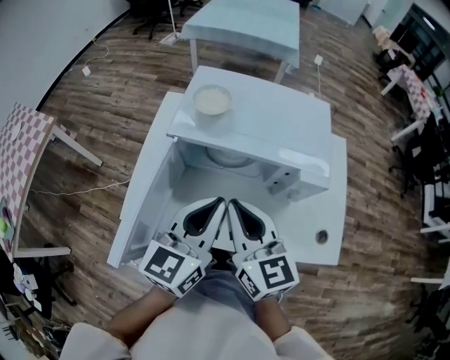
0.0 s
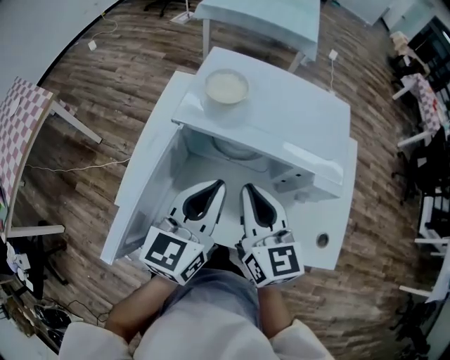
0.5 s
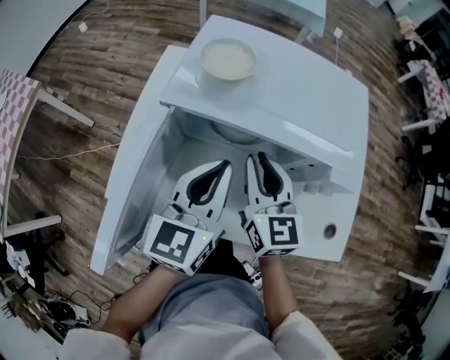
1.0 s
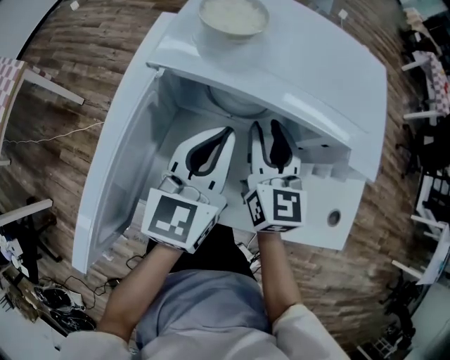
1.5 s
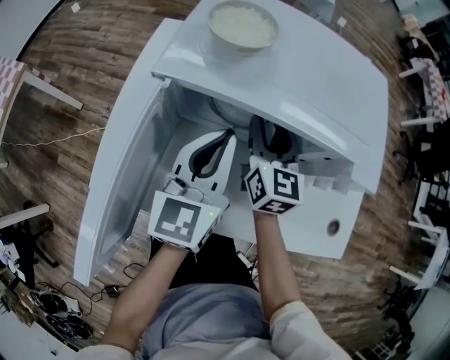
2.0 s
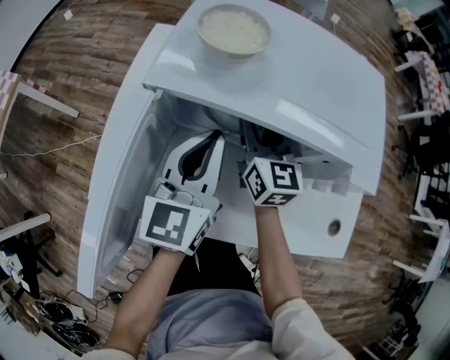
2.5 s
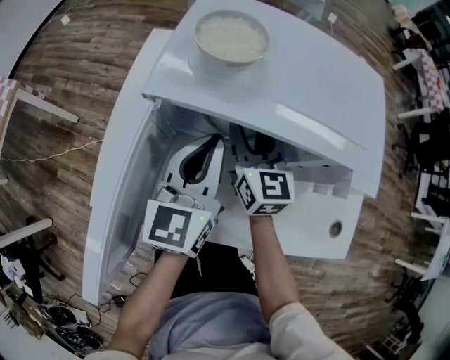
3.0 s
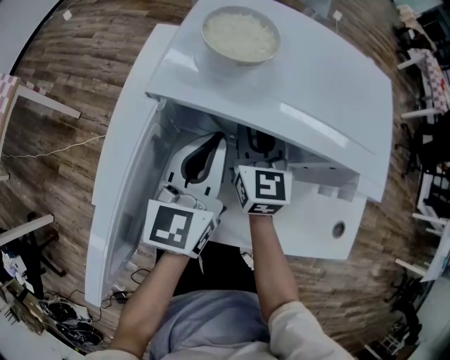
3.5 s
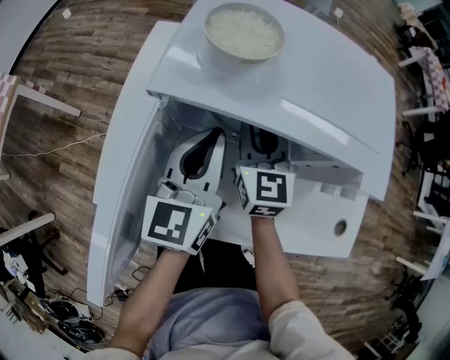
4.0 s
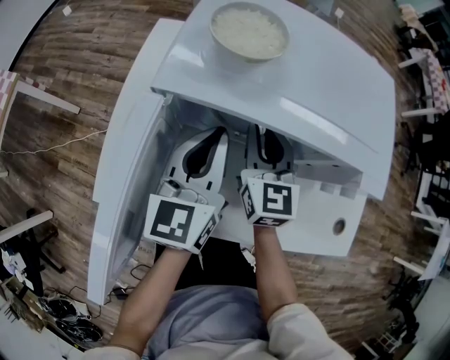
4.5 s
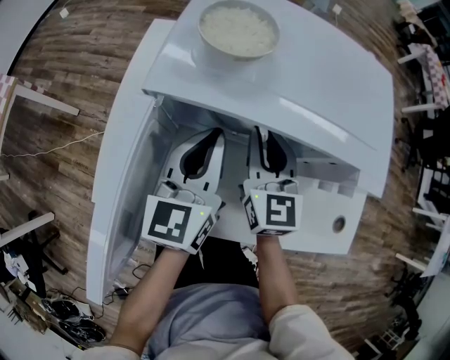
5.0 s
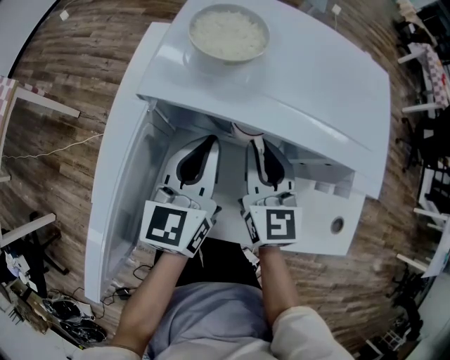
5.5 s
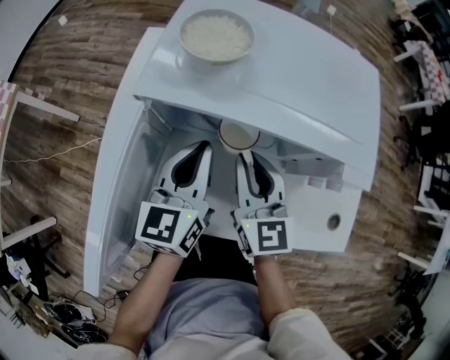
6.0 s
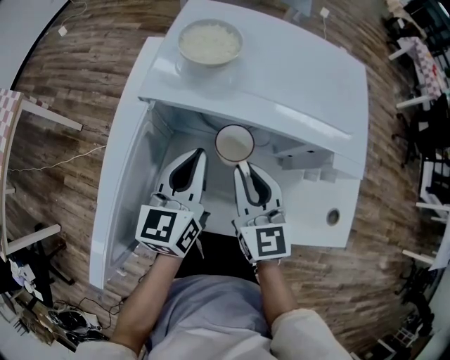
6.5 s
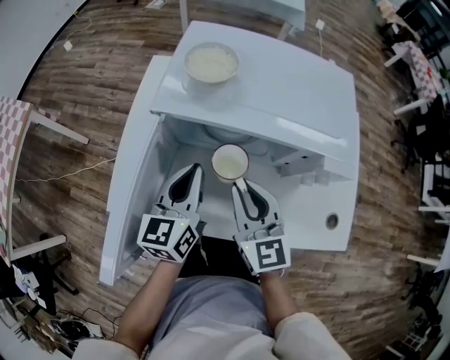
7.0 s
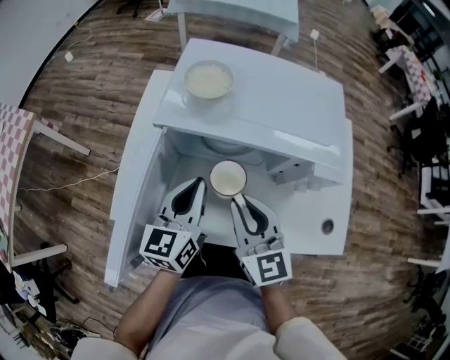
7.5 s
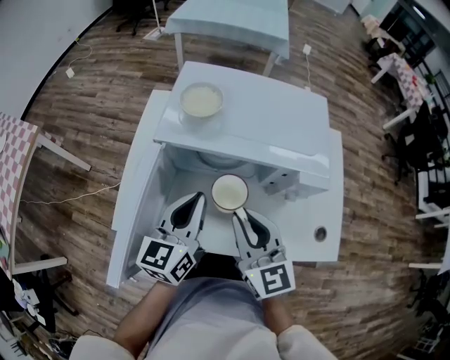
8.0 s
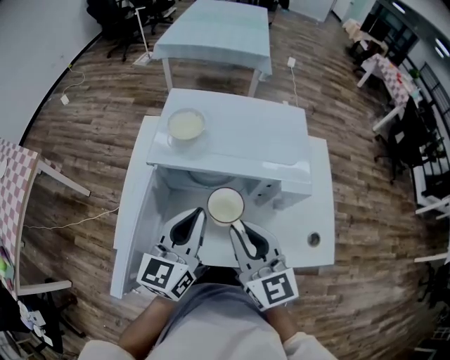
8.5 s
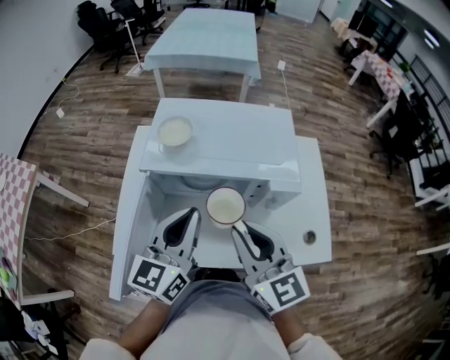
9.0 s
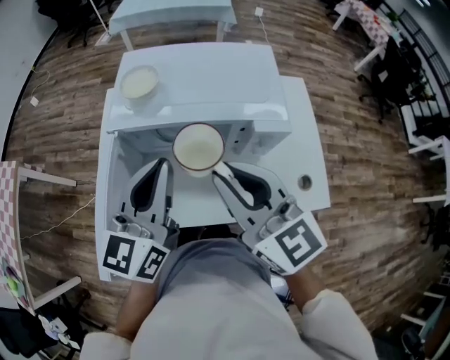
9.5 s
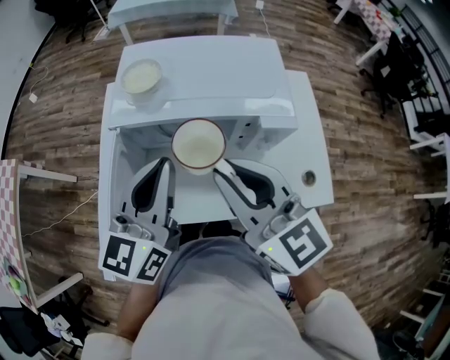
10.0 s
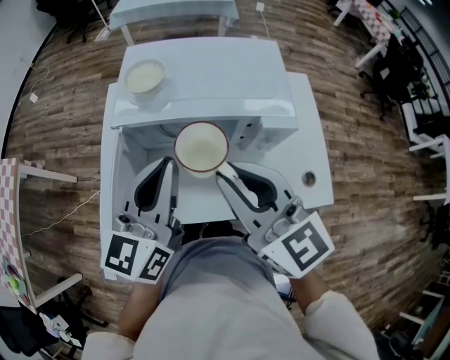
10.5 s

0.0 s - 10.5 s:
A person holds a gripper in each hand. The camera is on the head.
0.0 s - 2.0 s: The right gripper travels forward and downward by roughly 25 cm, and opens up, while the left gripper shifts some 15 cm downward and forward.
2.0 s - 4.0 s: The right gripper closes up.
4.0 s - 6.5 s: The right gripper is displaced backward by some 10 cm.
6.5 s - 8.5 s: The two grippers go about 15 cm upward and backward.
8.5 s - 10.5 s: The grippers both shift upward by some 5 cm.

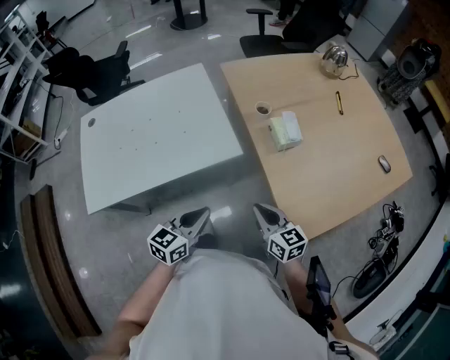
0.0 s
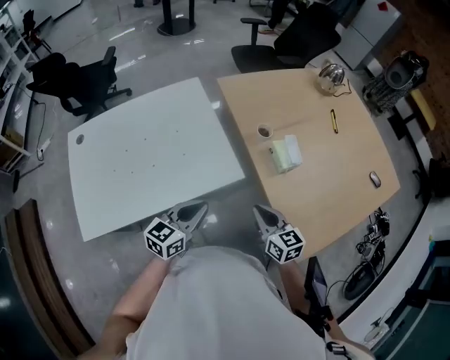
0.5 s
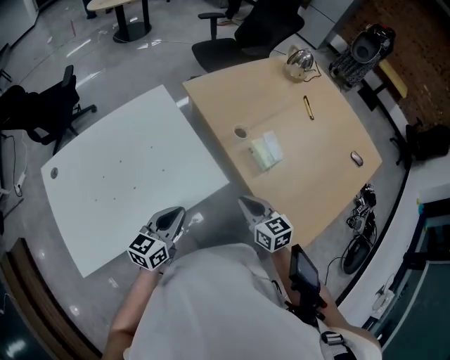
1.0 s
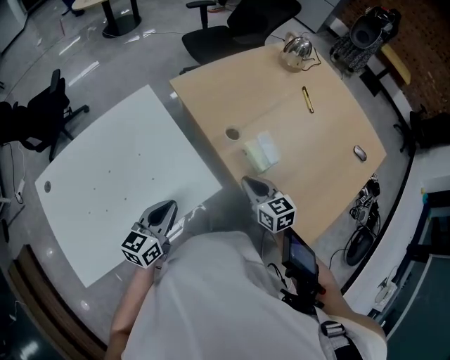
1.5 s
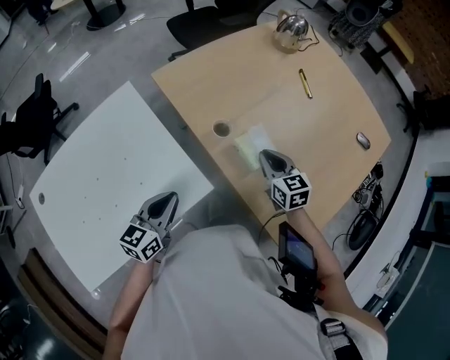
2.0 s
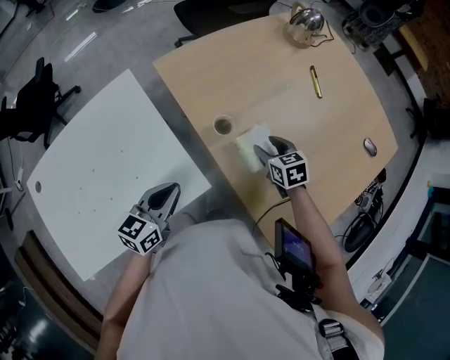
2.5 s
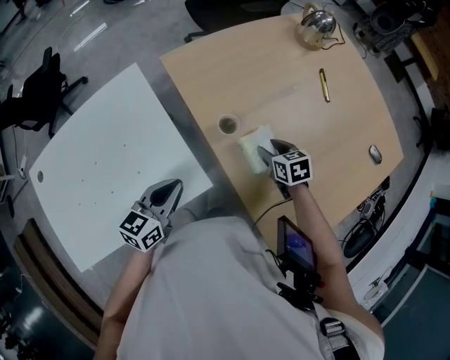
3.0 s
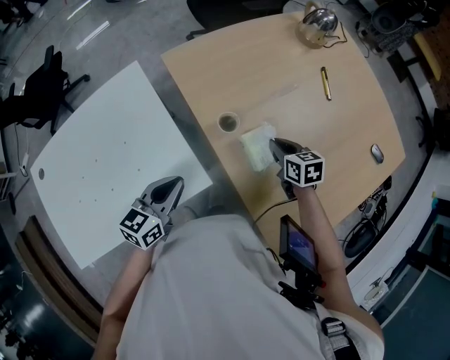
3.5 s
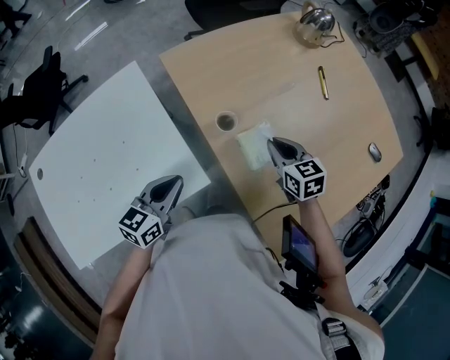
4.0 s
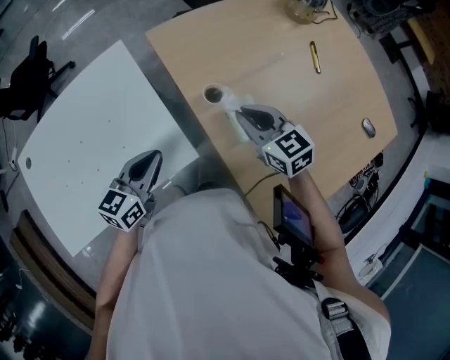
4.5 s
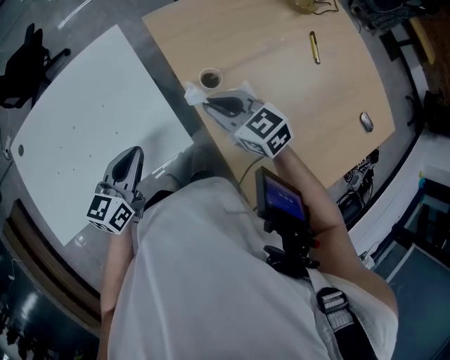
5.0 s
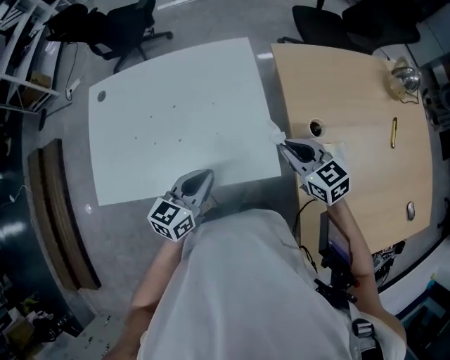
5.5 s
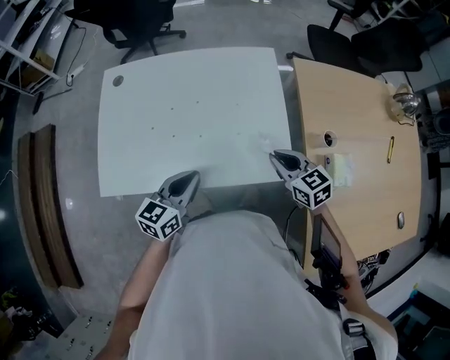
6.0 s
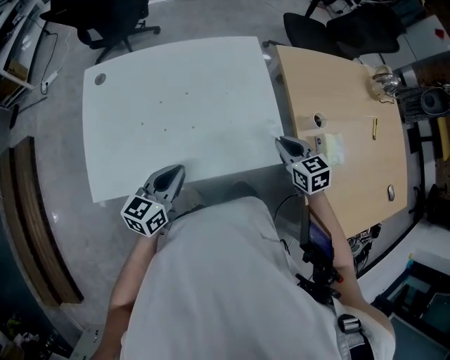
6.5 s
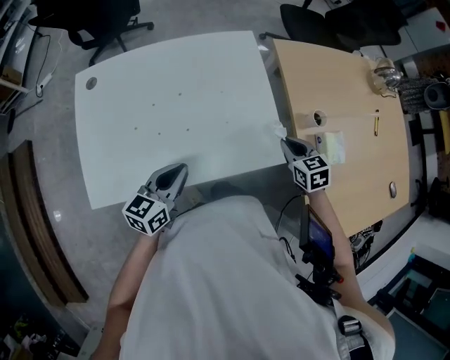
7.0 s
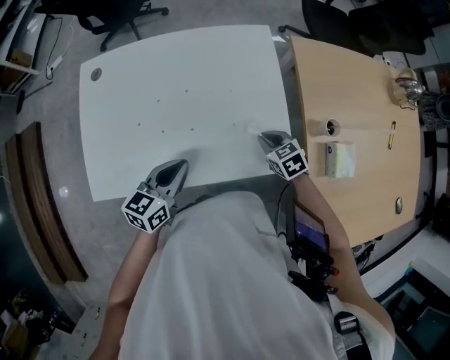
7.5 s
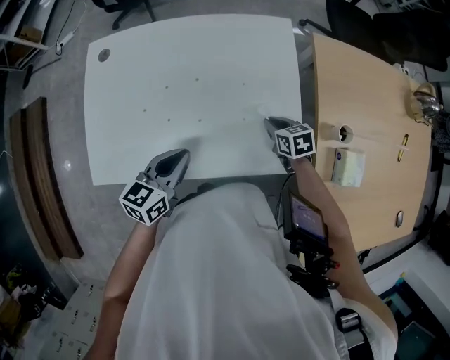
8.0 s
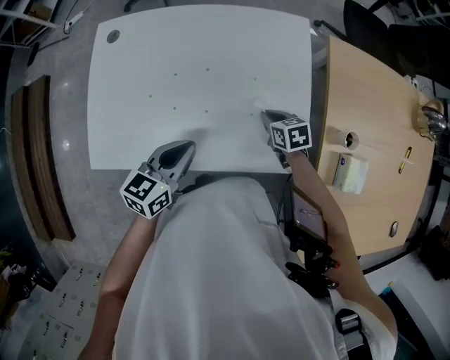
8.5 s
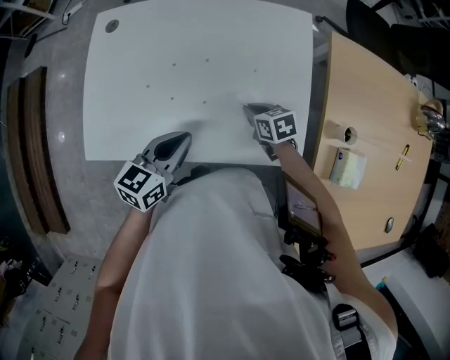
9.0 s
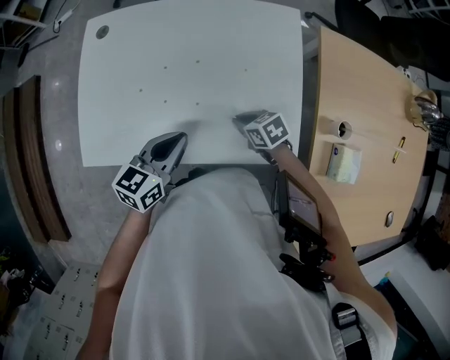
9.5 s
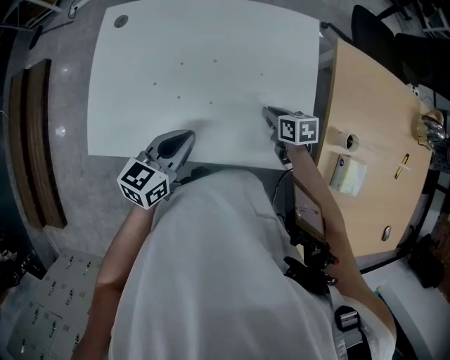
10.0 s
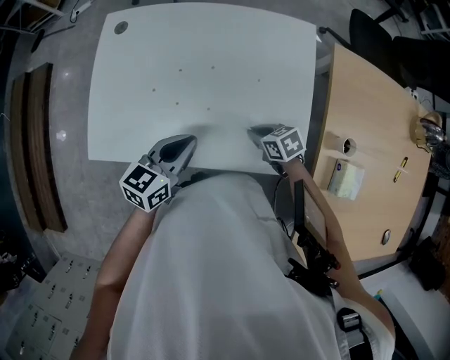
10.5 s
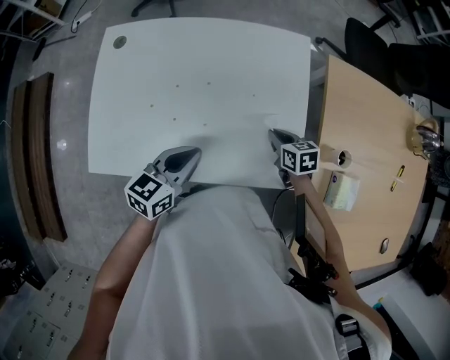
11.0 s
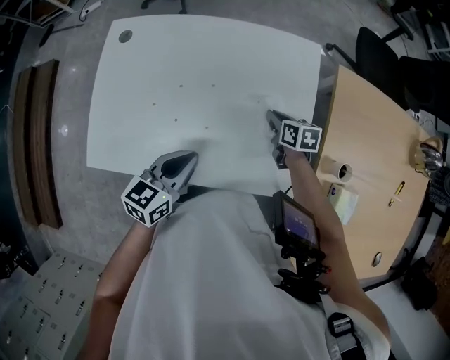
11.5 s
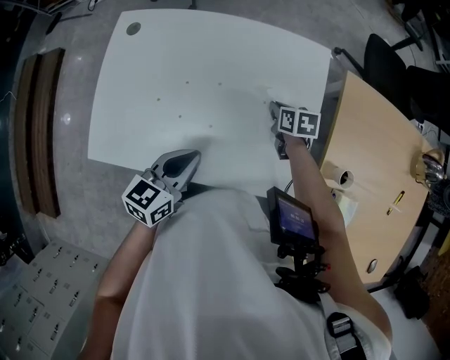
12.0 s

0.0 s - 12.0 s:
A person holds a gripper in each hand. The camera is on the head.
0.0 s - 2.0 s: The grippers both shift forward by roughly 25 cm. The right gripper changes its angle by approximately 30 degrees.
2.0 s - 4.0 s: The right gripper goes downward and returns, some 10 cm each way, and opens and closes again.
4.0 s - 6.0 s: The right gripper shifts by some 35 cm, and changes its angle by some 40 degrees; the left gripper ends up about 30 cm from where it was, and swivels some 30 degrees.
6.0 s - 8.0 s: The left gripper changes place by approximately 5 cm; the right gripper travels downward and forward by approximately 20 cm, and swivels about 30 degrees.
10.0 s - 12.0 s: The right gripper shifts approximately 10 cm forward.

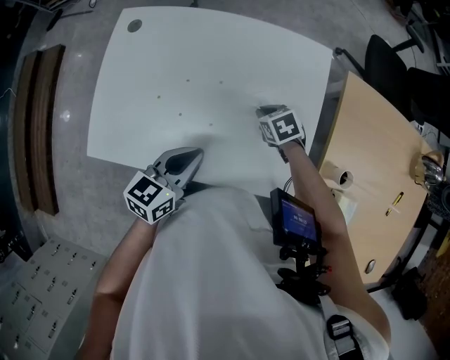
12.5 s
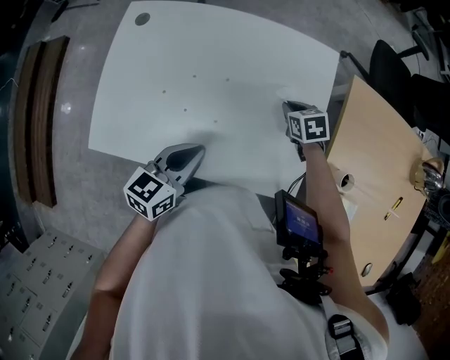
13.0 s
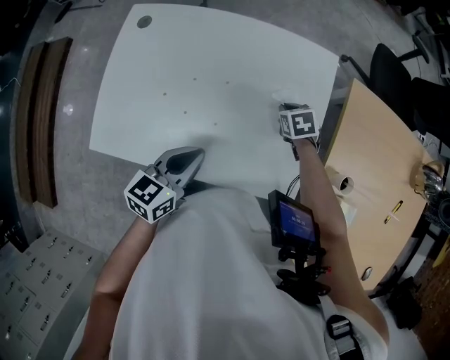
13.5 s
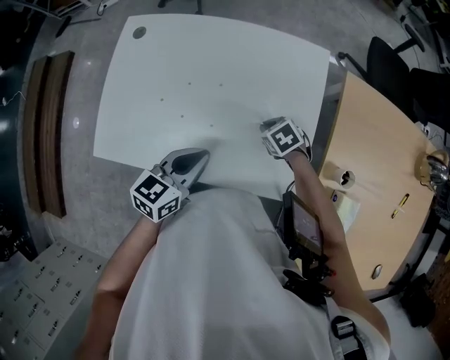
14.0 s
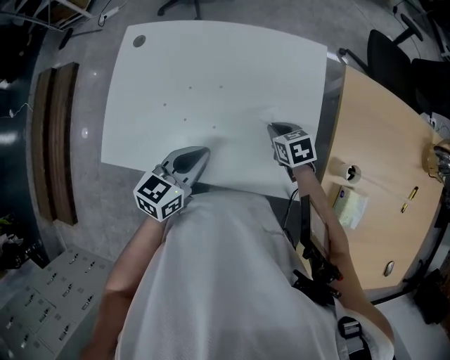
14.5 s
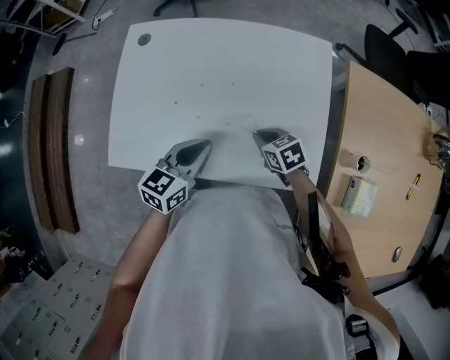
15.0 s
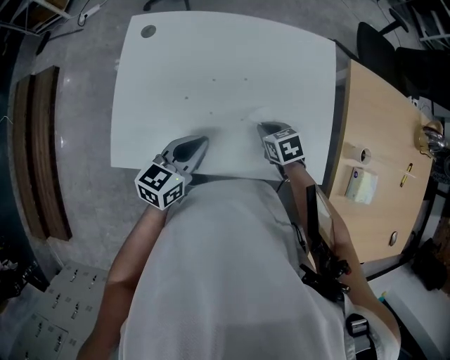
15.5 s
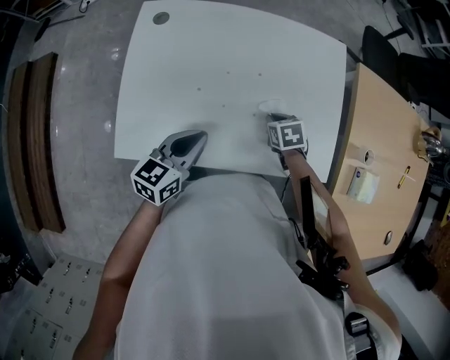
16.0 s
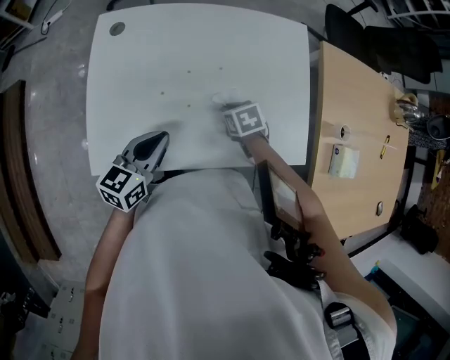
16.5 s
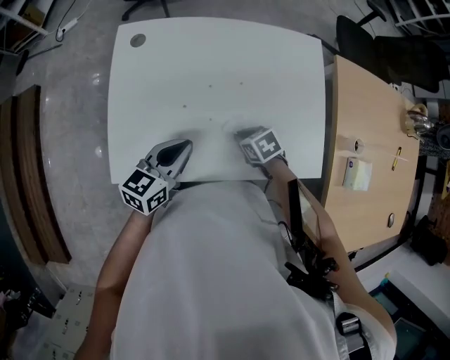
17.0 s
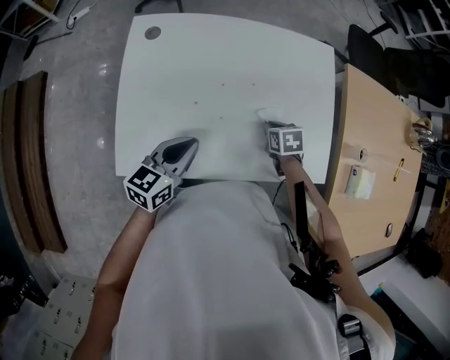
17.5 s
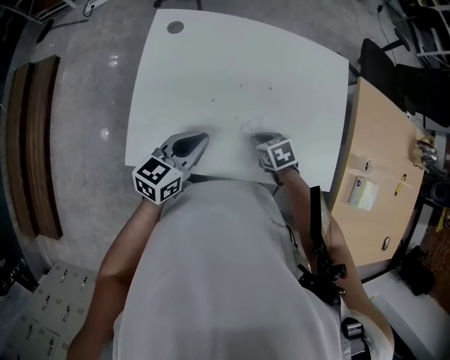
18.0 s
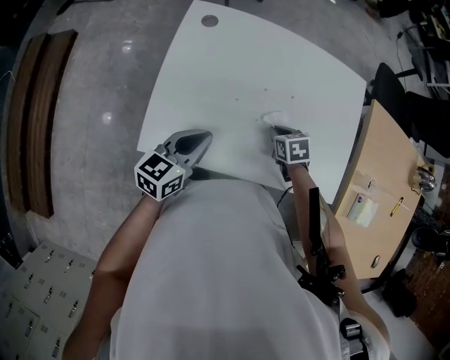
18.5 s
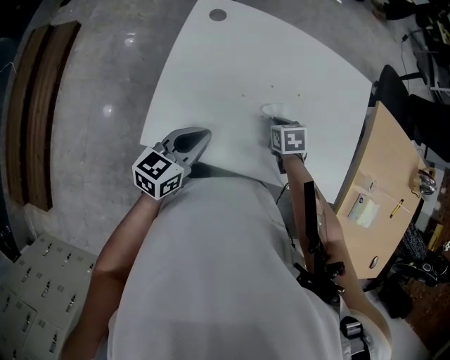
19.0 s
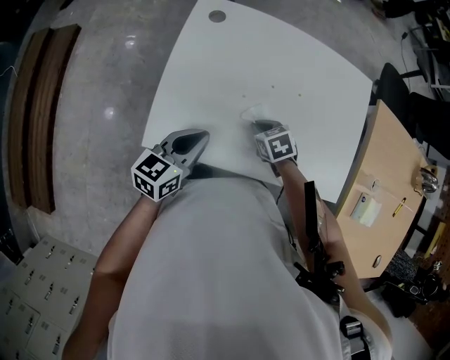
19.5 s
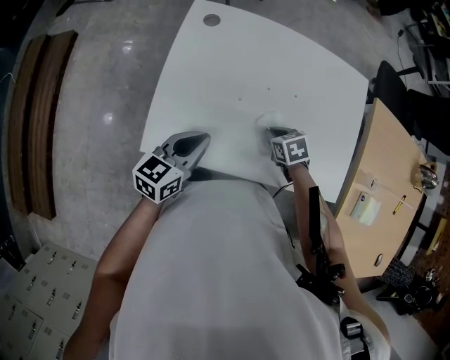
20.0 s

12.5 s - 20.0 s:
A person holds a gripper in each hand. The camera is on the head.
12.5 s - 14.5 s: The right gripper moves roughly 5 cm.
14.5 s - 16.5 s: The grippers both shift to the left by some 15 cm.
16.5 s - 18.0 s: The right gripper ends up approximately 5 cm from where it was.
18.0 s - 20.0 s: The right gripper goes to the left and returns, about 10 cm each way, while the left gripper travels to the left by about 5 cm.
